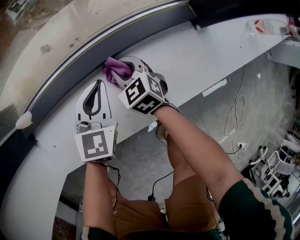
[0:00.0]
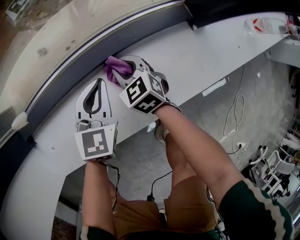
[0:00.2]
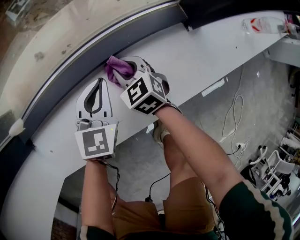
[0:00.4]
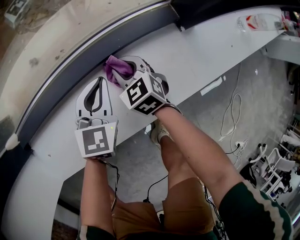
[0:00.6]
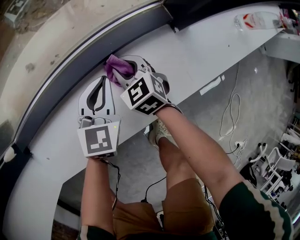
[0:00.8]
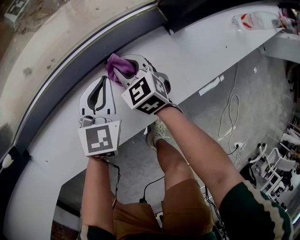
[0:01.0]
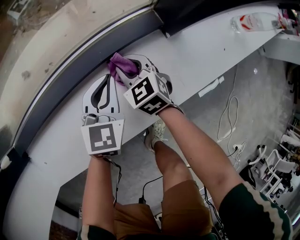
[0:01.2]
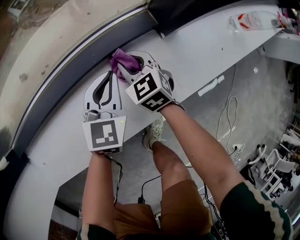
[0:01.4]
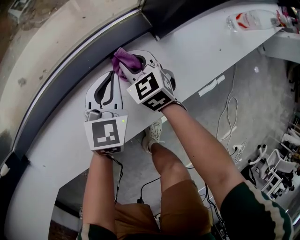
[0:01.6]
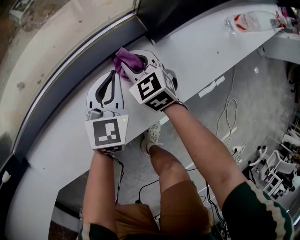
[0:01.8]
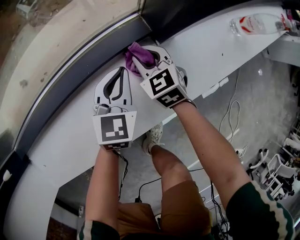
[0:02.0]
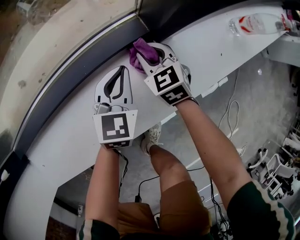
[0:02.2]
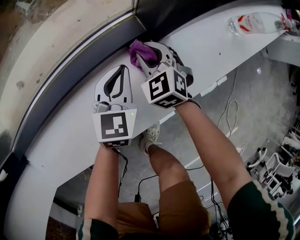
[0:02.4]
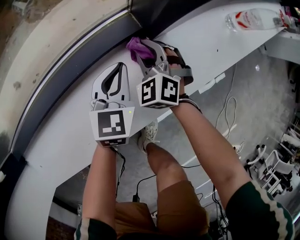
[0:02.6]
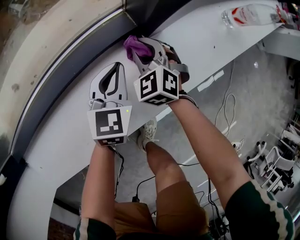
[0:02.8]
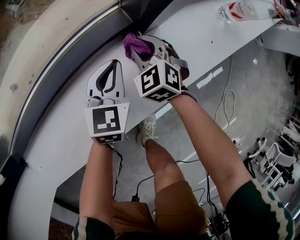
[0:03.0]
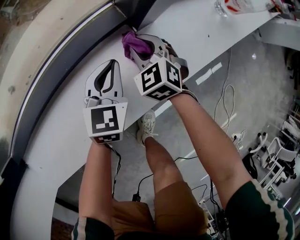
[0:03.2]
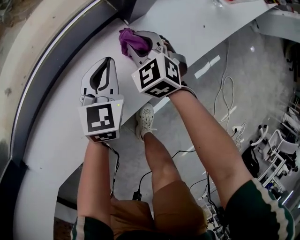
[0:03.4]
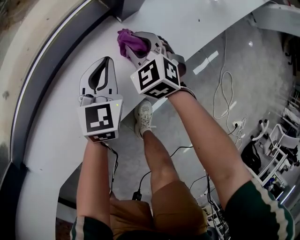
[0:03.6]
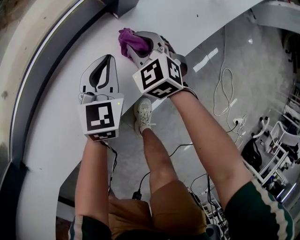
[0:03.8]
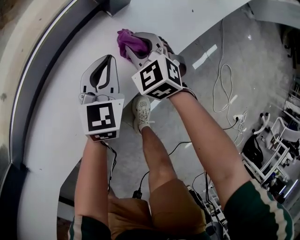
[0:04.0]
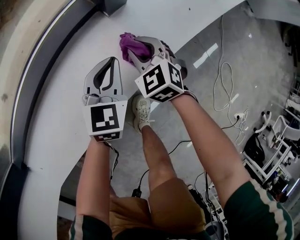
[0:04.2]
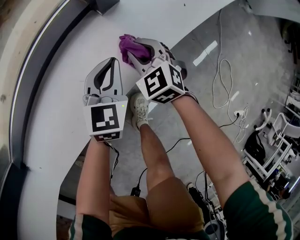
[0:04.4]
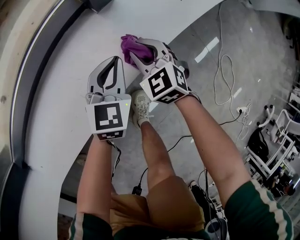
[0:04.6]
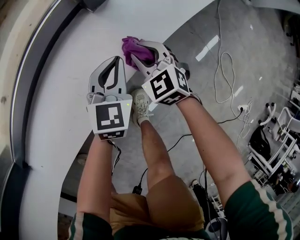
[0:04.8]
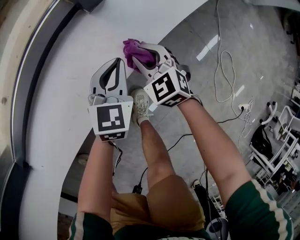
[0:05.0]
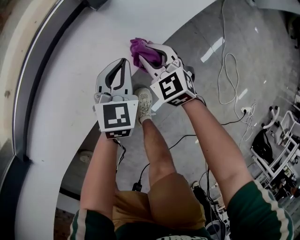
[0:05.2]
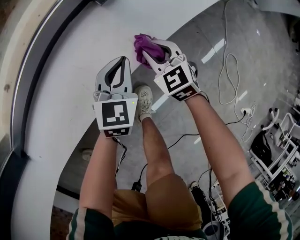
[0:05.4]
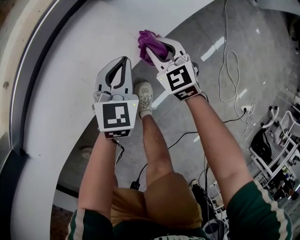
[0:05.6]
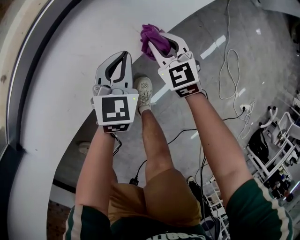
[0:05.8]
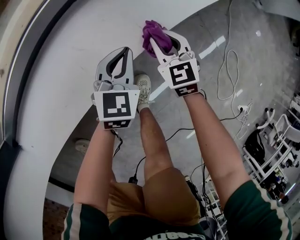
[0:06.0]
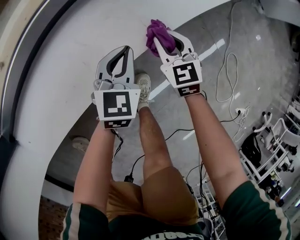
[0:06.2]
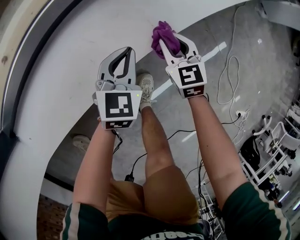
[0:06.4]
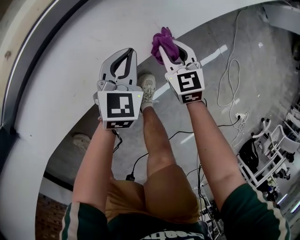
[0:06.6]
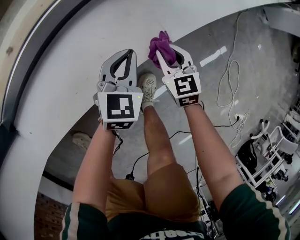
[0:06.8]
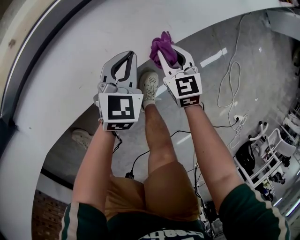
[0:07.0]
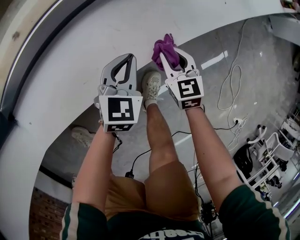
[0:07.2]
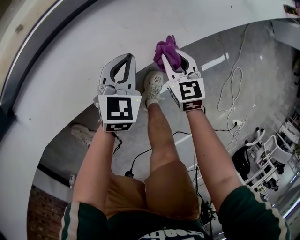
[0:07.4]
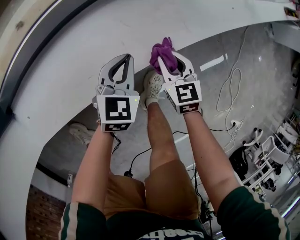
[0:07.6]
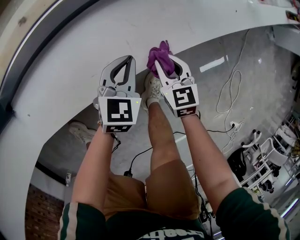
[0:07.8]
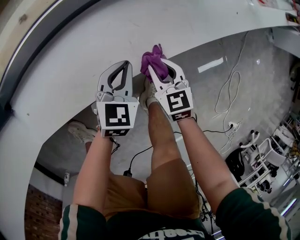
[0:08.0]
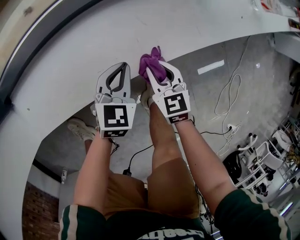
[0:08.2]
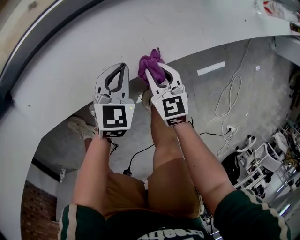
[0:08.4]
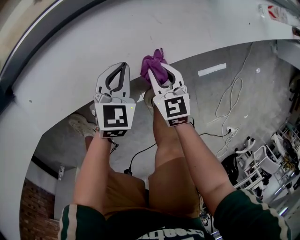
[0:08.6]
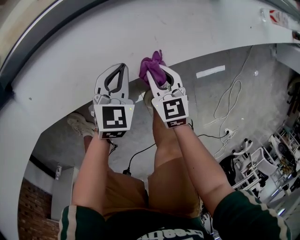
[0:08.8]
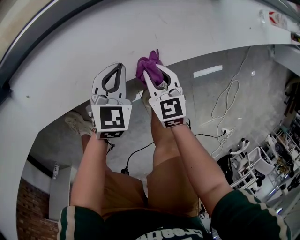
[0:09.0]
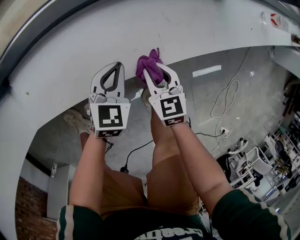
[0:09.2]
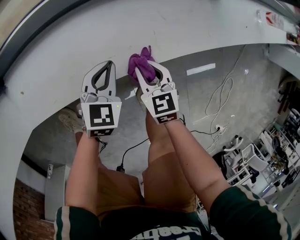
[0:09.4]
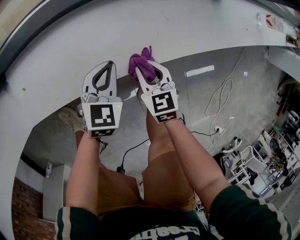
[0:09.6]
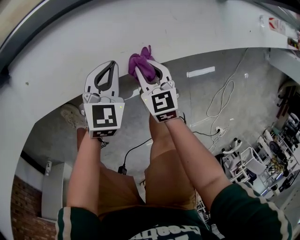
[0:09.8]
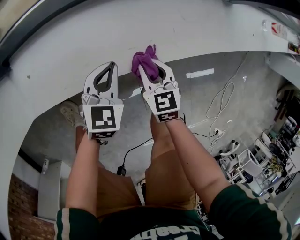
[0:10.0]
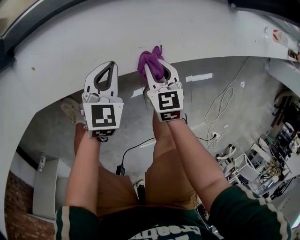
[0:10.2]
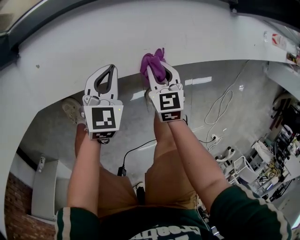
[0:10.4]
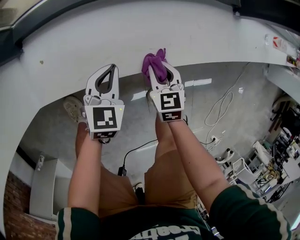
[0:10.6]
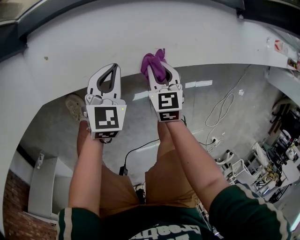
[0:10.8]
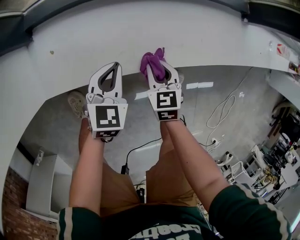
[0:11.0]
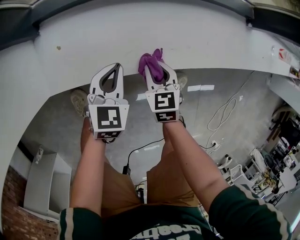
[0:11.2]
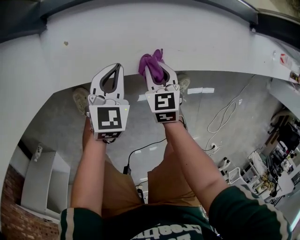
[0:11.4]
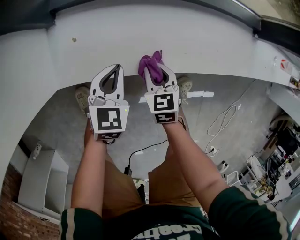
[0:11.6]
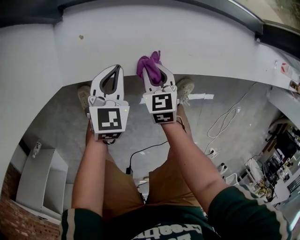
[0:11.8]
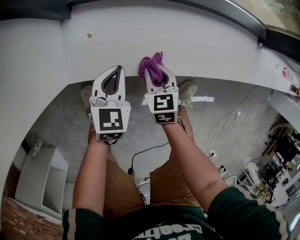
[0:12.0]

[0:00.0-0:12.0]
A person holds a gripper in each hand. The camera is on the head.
0:00.0 to 0:01.6: Both grippers move to the right, about 20 cm.
0:01.6 to 0:03.0: Both grippers travel together to the right, approximately 10 cm.
0:03.0 to 0:04.4: The left gripper goes approximately 10 cm to the right and backward, while the right gripper is displaced backward and to the right by some 15 cm.
0:04.4 to 0:06.0: The left gripper goes roughly 5 cm backward. The right gripper shifts about 10 cm backward and to the right.
0:06.0 to 0:07.6: The right gripper shifts approximately 15 cm to the left and backward; the left gripper heads to the left, covering about 15 cm.
0:07.6 to 0:09.0: The grippers both shift to the left by approximately 15 cm.
0:09.0 to 0:10.4: The right gripper goes some 10 cm to the left. The left gripper moves to the left, some 10 cm.
0:10.4 to 0:12.0: The grippers both shift to the left by some 20 cm.

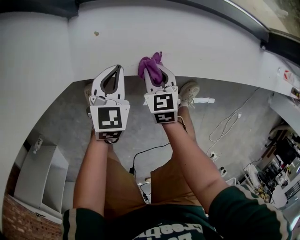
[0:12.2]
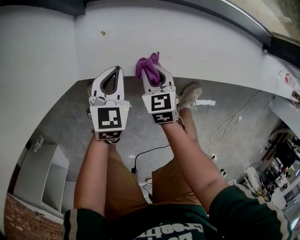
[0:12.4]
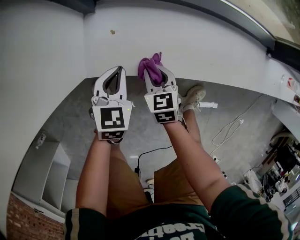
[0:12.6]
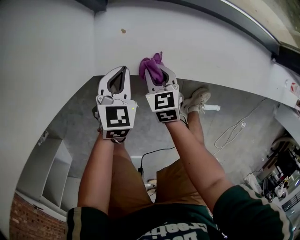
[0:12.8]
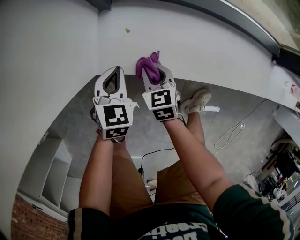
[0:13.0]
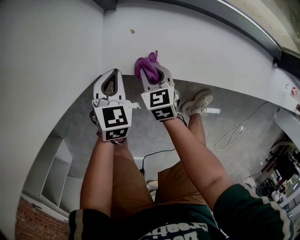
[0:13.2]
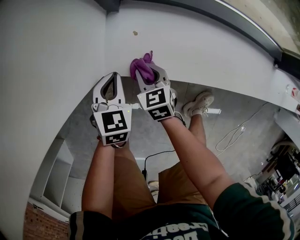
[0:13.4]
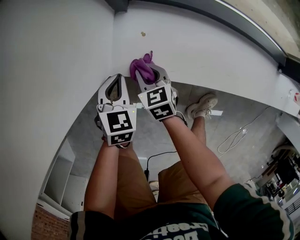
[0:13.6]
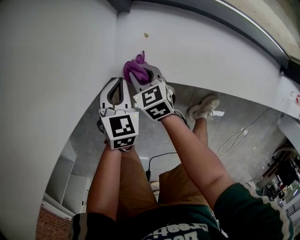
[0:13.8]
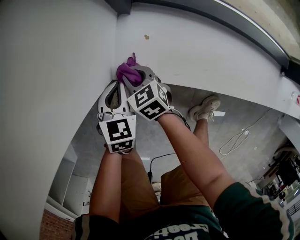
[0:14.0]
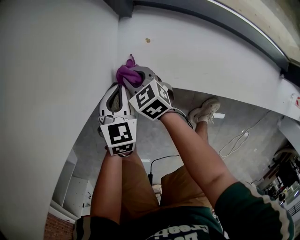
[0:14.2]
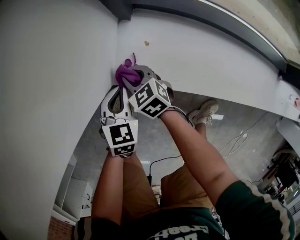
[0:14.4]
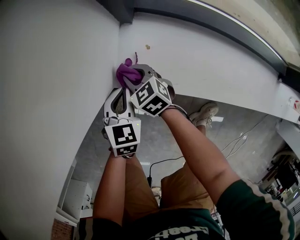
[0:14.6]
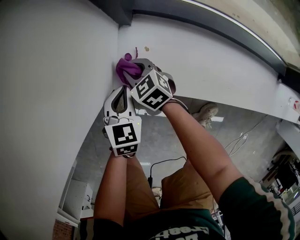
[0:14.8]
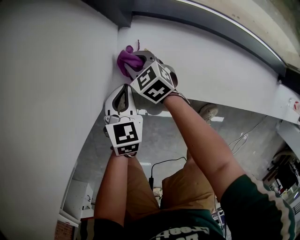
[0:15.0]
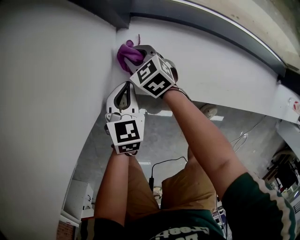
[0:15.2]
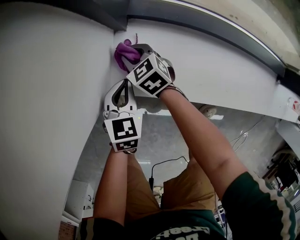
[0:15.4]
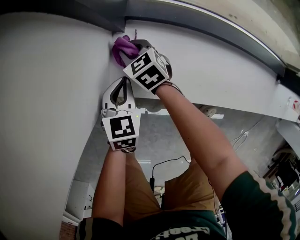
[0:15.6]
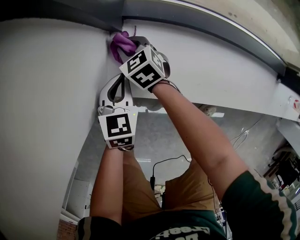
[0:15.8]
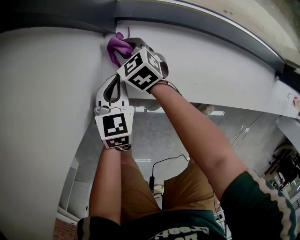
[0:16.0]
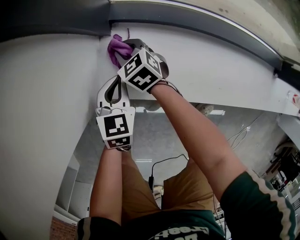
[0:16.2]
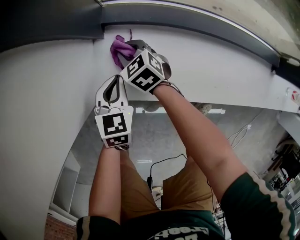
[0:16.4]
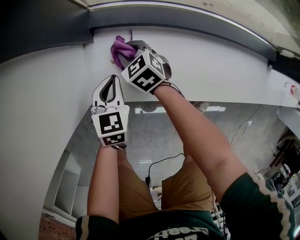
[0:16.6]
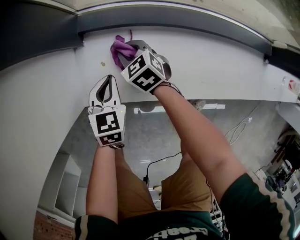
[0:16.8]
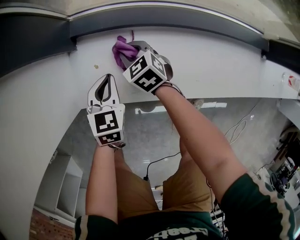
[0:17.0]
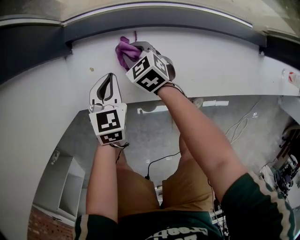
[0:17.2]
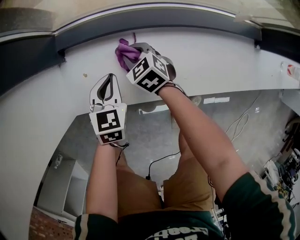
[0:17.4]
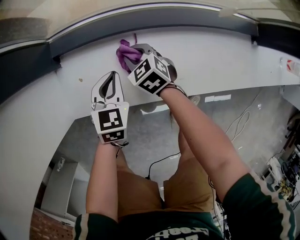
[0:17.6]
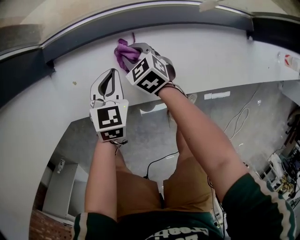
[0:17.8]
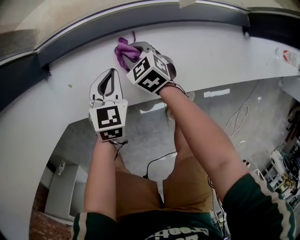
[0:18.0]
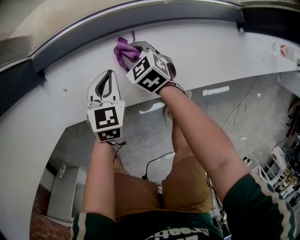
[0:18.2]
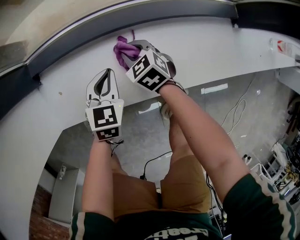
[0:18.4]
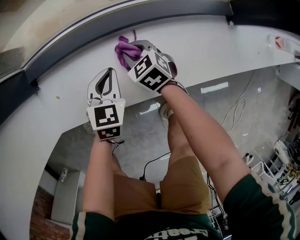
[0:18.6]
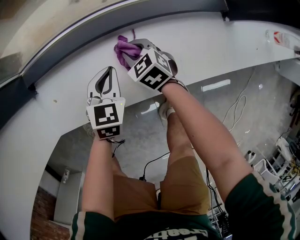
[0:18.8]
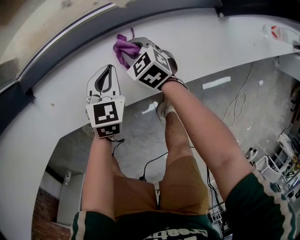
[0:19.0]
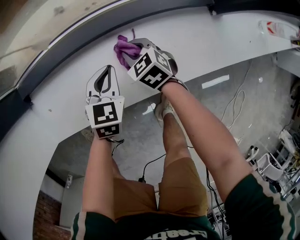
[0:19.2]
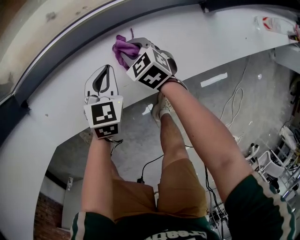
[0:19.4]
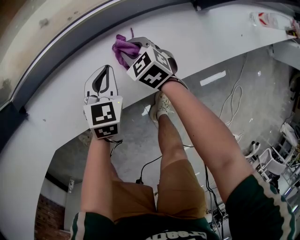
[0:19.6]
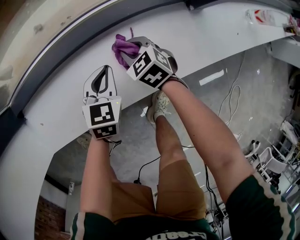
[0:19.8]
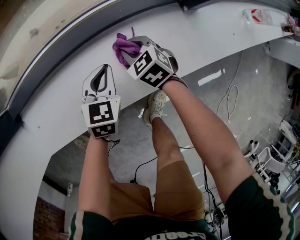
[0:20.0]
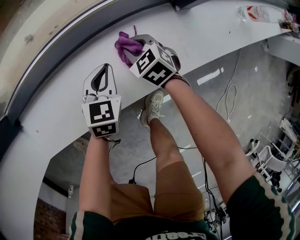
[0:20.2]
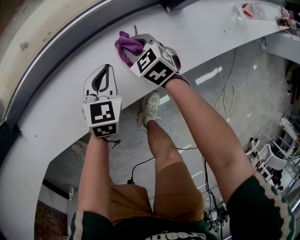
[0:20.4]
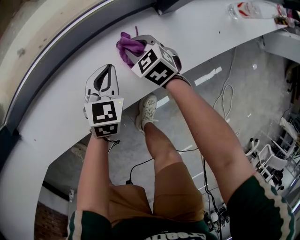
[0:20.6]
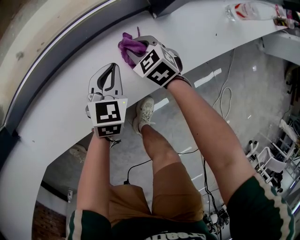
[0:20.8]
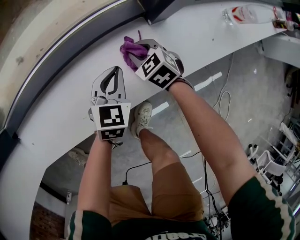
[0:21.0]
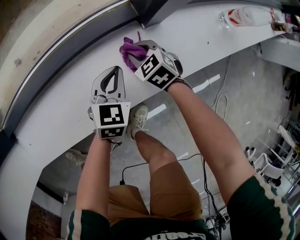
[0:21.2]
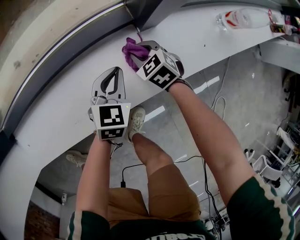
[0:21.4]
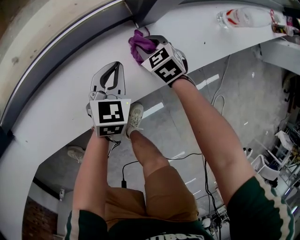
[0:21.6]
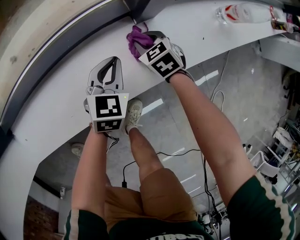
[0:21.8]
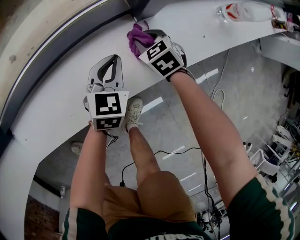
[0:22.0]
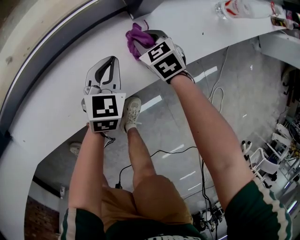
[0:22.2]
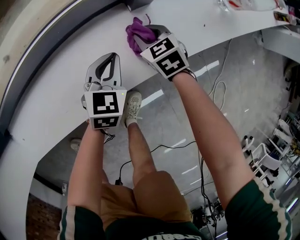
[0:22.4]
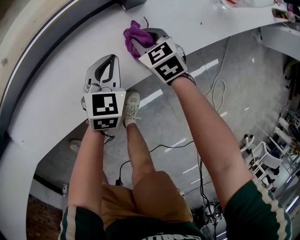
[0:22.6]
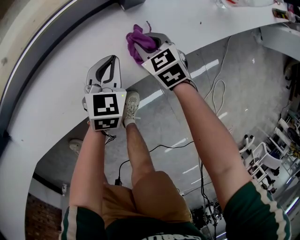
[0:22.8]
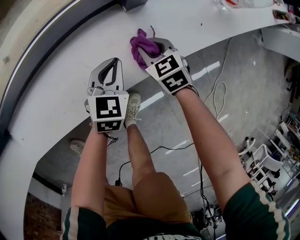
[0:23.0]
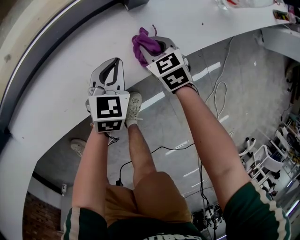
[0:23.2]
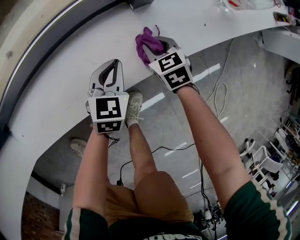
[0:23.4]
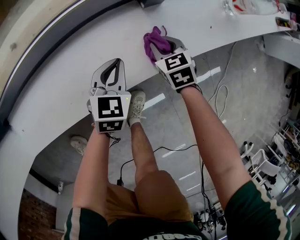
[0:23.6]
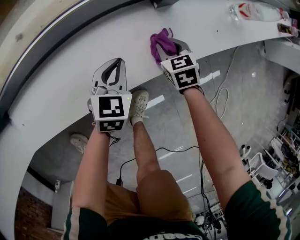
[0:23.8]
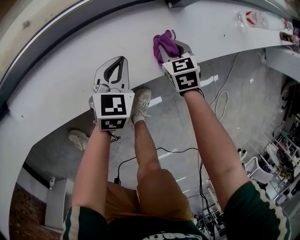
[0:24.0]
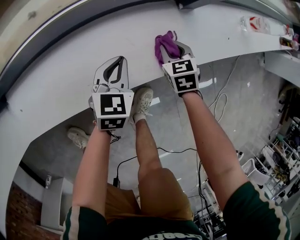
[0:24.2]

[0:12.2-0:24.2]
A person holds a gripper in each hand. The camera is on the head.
0:12.2 to 0:13.8: The right gripper shifts by approximately 20 cm, and turns by about 20 degrees. The left gripper ends up roughly 15 cm from where it was.
0:13.8 to 0:15.2: The right gripper is displaced forward by approximately 10 cm. The left gripper moves about 5 cm.
0:15.2 to 0:16.6: Both grippers move to the right, about 10 cm.
0:16.6 to 0:18.2: The grippers both shift to the right by approximately 25 cm.
0:18.2 to 0:19.8: Both grippers travel together to the right, roughly 20 cm.
0:19.8 to 0:21.2: Both grippers travel together to the right, roughly 20 cm.
0:21.2 to 0:22.6: The right gripper shifts approximately 5 cm to the right; the left gripper ends up about 5 cm from where it was.
0:22.6 to 0:24.2: The right gripper goes roughly 10 cm to the left and backward. Meanwhile the left gripper is displaced to the left and backward by some 15 cm.
